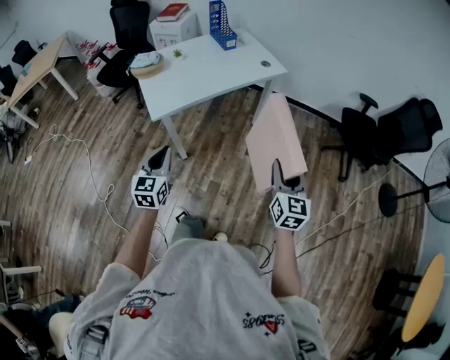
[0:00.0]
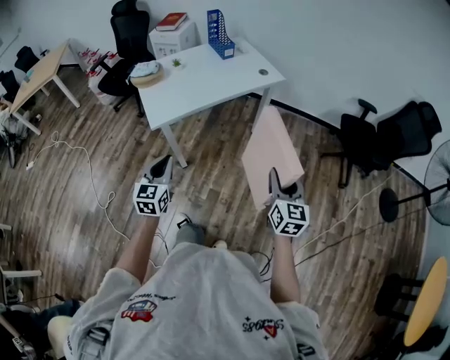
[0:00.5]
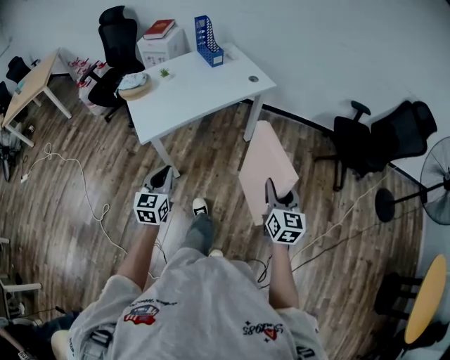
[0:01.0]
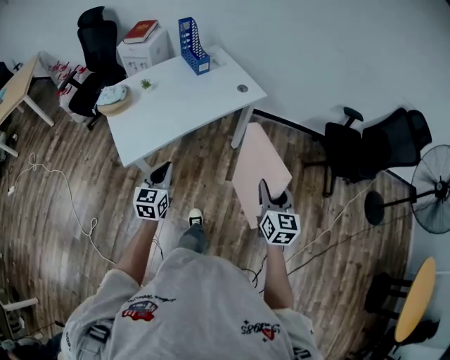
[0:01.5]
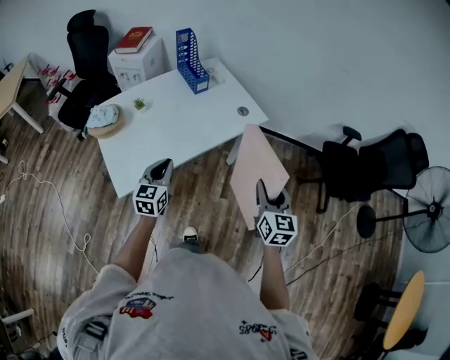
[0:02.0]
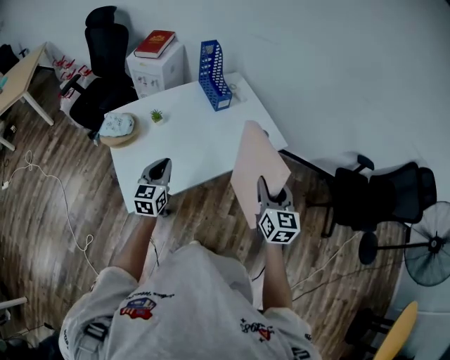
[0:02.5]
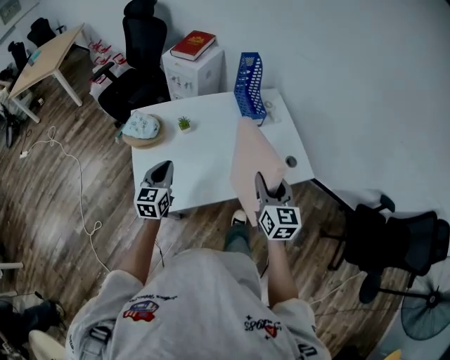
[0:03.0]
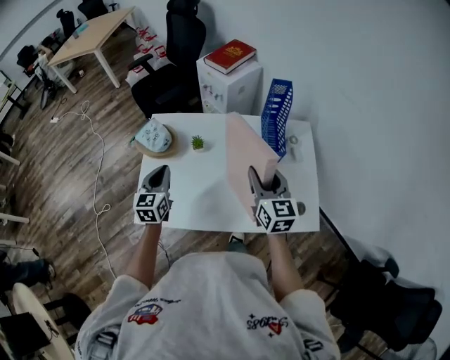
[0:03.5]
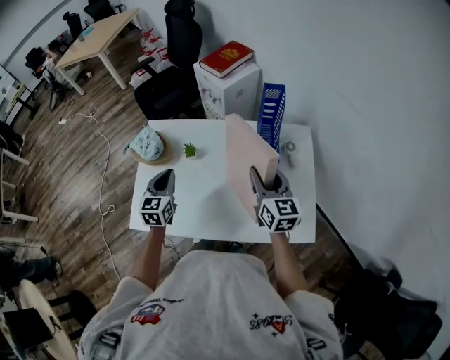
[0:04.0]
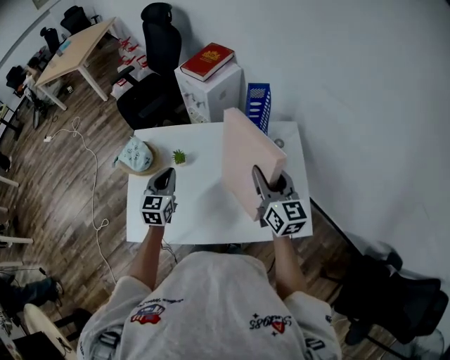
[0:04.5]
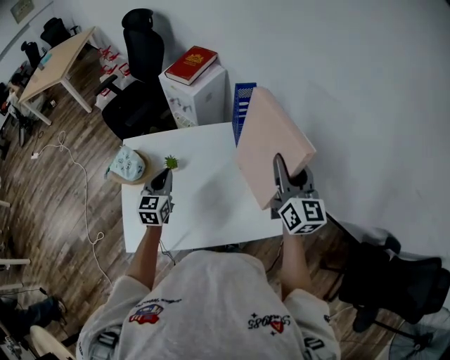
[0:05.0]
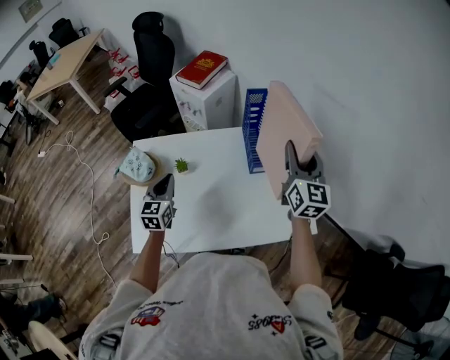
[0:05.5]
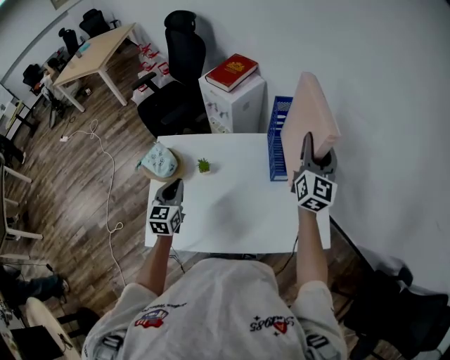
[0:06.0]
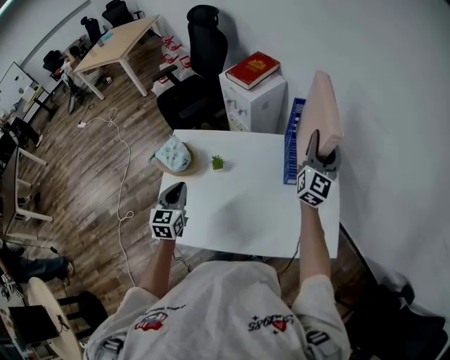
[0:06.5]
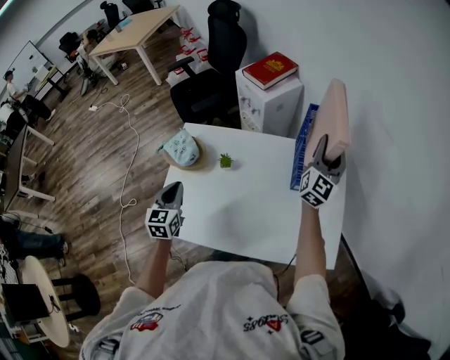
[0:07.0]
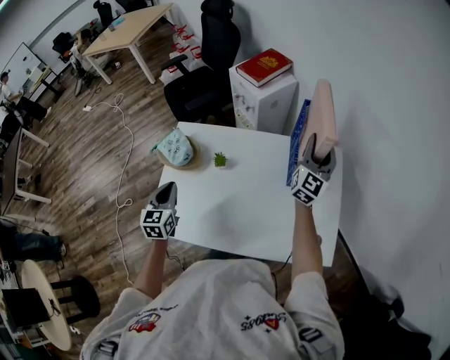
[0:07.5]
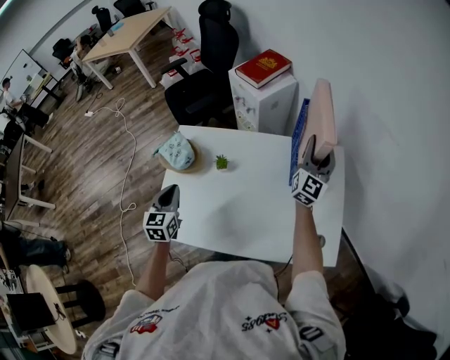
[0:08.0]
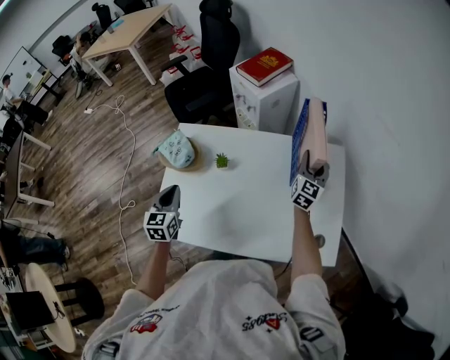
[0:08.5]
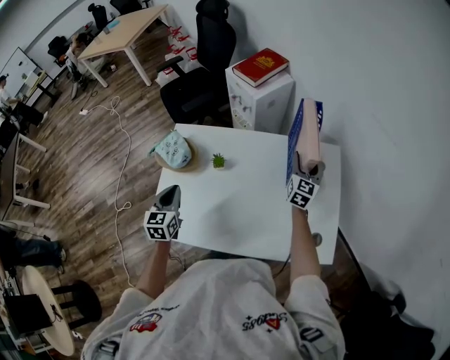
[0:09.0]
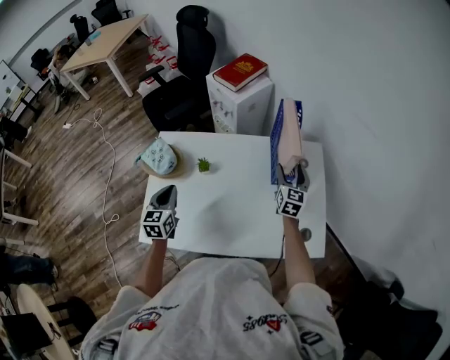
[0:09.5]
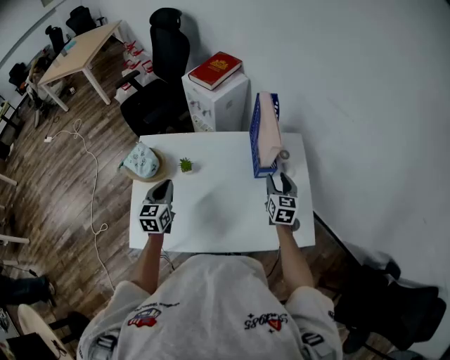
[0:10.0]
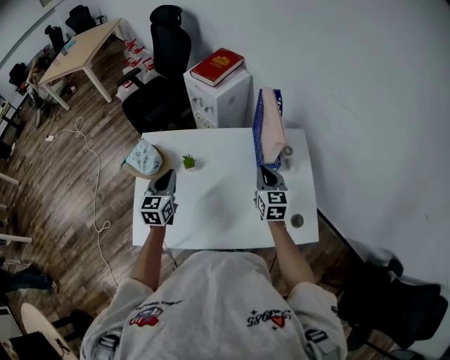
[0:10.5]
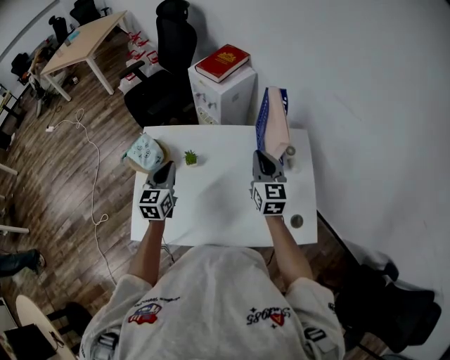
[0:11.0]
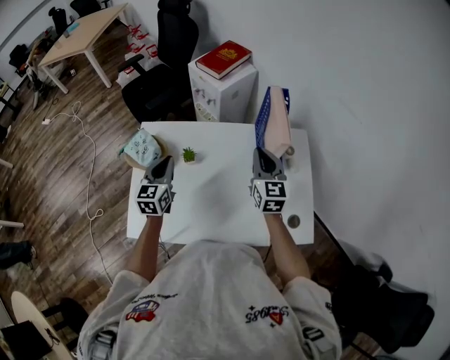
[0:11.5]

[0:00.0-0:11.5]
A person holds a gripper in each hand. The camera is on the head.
0:00.0 to 0:02.0: Both grippers travel together forward, some 35 cm.
0:02.0 to 0:04.0: The left gripper ends up about 30 cm from where it was, and turns by some 40 degrees. Meanwhile the right gripper moves approximately 60 cm, and changes its angle by some 50 degrees.
0:04.0 to 0:06.0: The right gripper moves upward, forward and to the right, about 20 cm, and turns by roughly 40 degrees.
0:06.0 to 0:07.5: The left gripper travels to the left by about 5 cm, while the right gripper travels downward and forward by approximately 10 cm.
0:07.5 to 0:09.5: The right gripper travels downward by some 15 cm, changes its angle by approximately 30 degrees, and opens.
0:09.5 to 0:11.5: The right gripper travels upward and to the left by roughly 15 cm, and closes up, while the left gripper travels forward by approximately 5 cm.

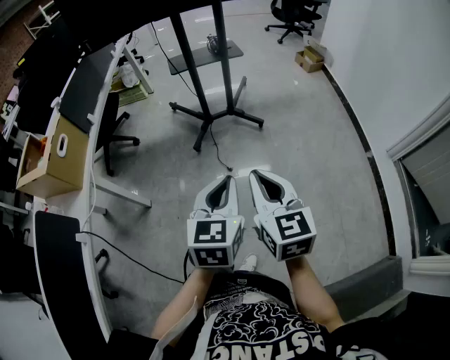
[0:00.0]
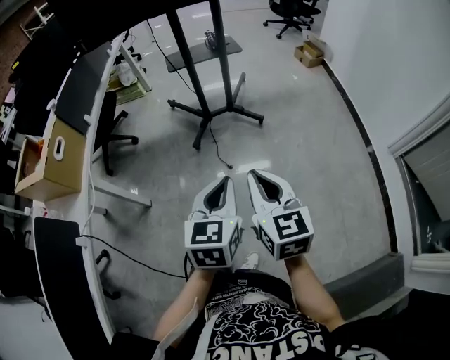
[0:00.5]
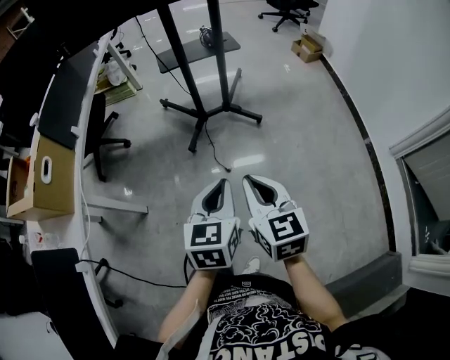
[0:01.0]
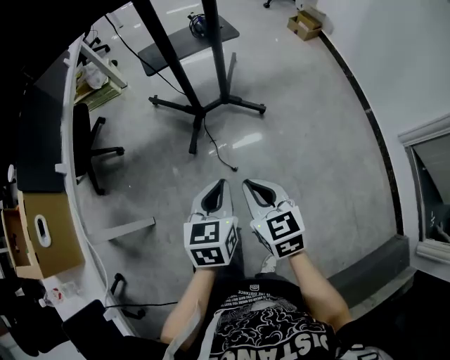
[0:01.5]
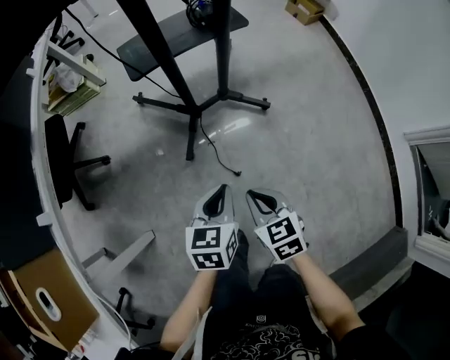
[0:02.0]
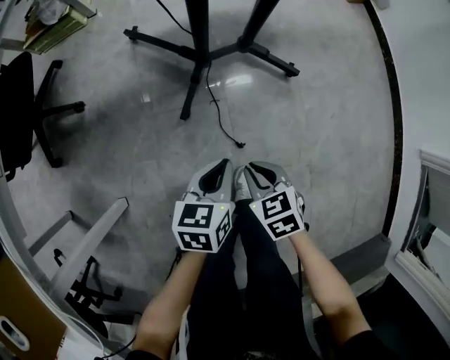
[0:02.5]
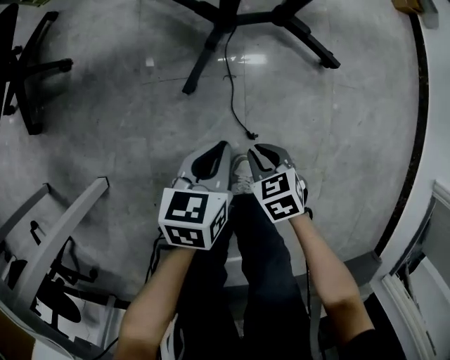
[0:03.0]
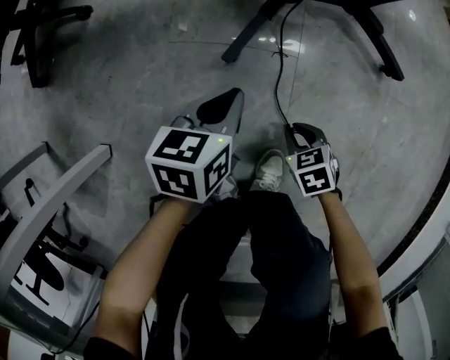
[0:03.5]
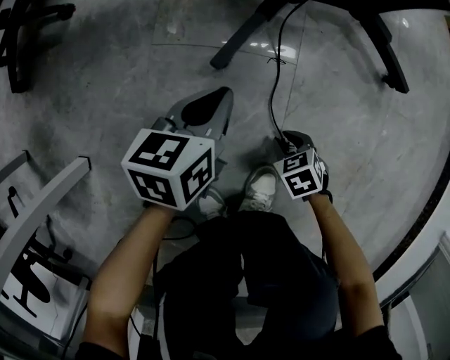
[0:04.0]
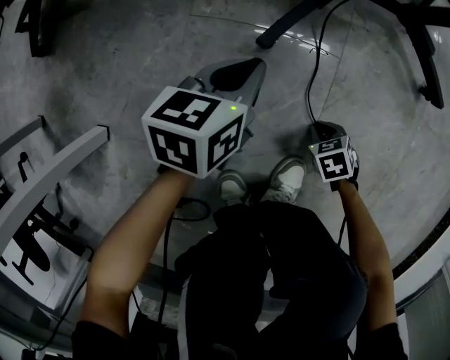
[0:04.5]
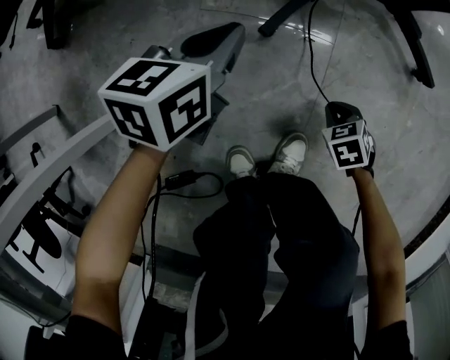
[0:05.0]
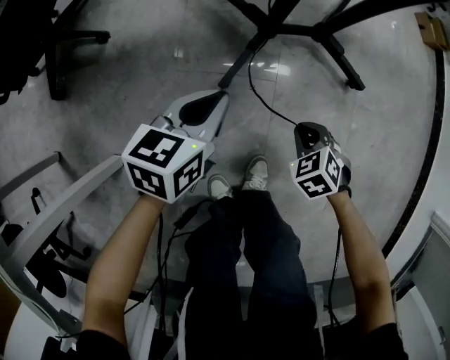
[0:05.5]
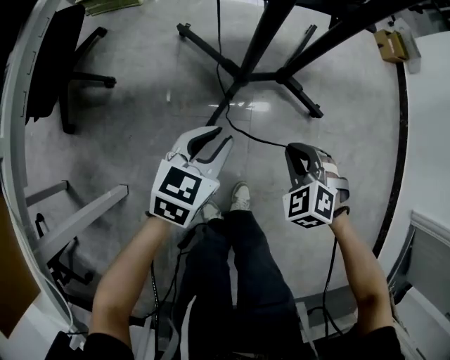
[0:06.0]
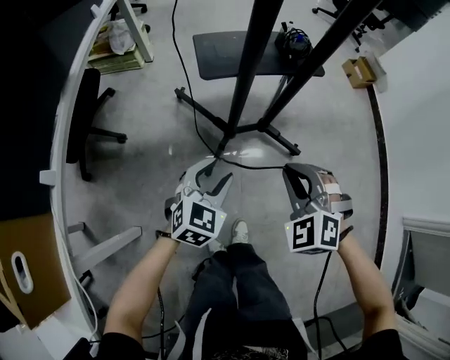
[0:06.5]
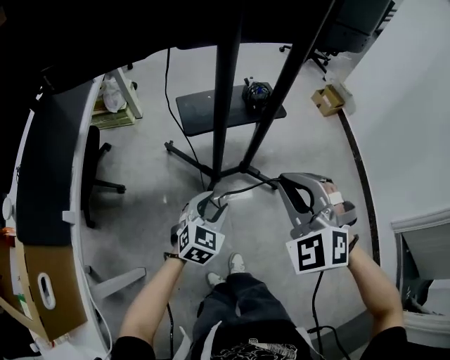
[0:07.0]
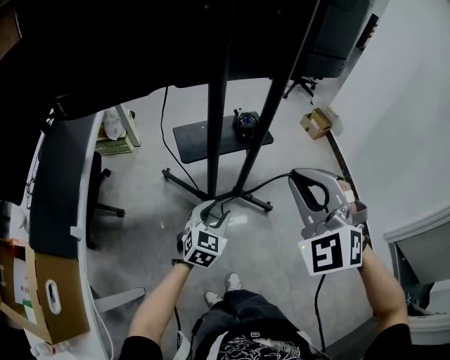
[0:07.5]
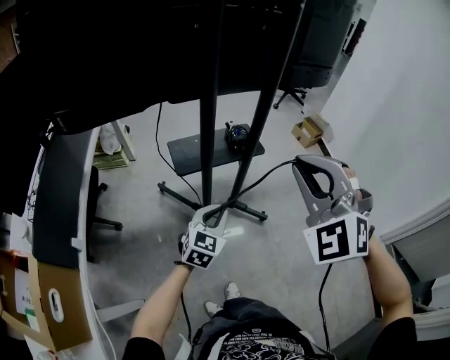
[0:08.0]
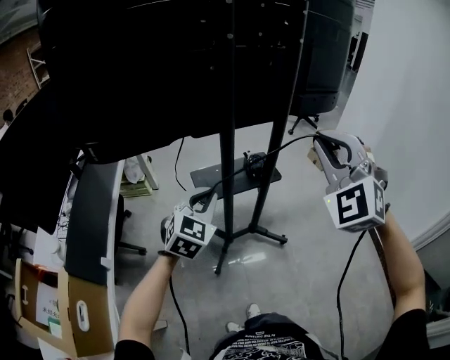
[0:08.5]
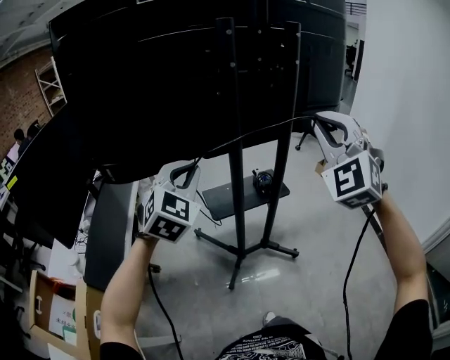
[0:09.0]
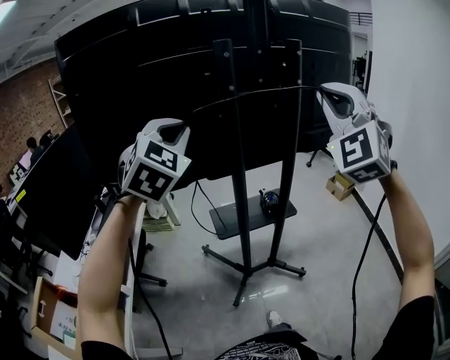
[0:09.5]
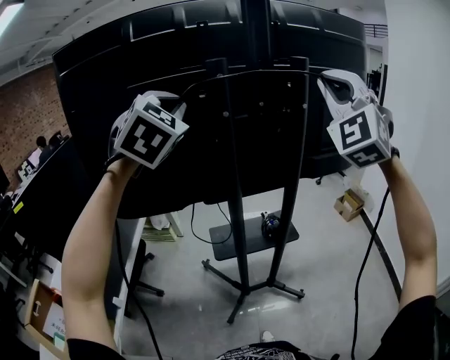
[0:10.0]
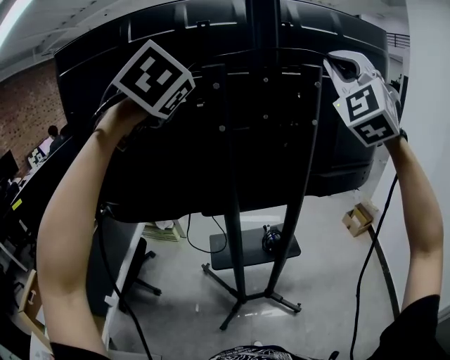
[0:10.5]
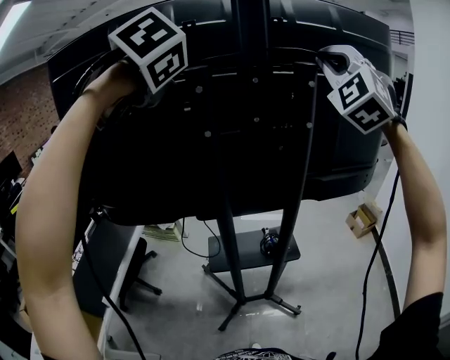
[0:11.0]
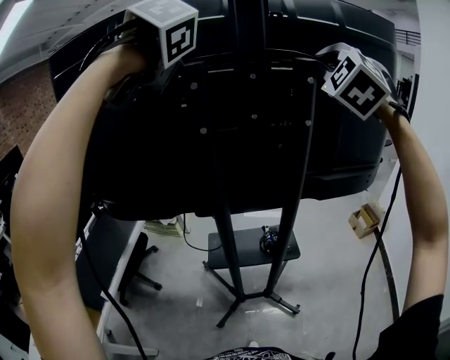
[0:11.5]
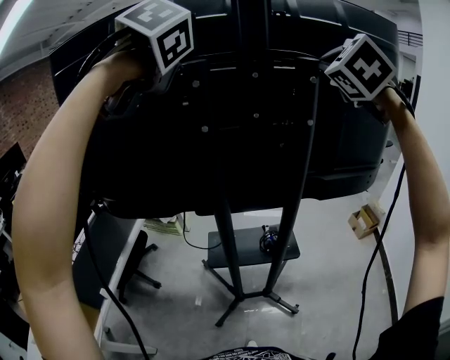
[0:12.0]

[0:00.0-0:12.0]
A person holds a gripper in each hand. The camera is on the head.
0:00.0 to 0:02.0: The two grippers go some 40 cm forward and downward. The right gripper turns by about 30 degrees. Meanwhile the left gripper changes its angle by approximately 20 degrees.
0:02.0 to 0:04.0: The grippers both shift downward by some 50 cm. The right gripper changes its angle by about 40 degrees, and opens its fingers.
0:04.0 to 0:06.0: Both grippers travel together upward, roughly 40 cm. The left gripper changes its angle by approximately 30 degrees, and opens its fingers; the right gripper changes its angle by roughly 40 degrees.
0:06.0 to 0:08.0: The right gripper moves upward, approximately 60 cm, and angles its fingers upward, by roughly 40 degrees. The left gripper shifts some 25 cm upward, rotates roughly 20 degrees, and opens and closes again.
0:08.0 to 0:10.0: The right gripper shifts approximately 40 cm upward and forward, and angles its fingers upward, by approximately 30 degrees; the left gripper is displaced upward by approximately 60 cm, and changes its angle by approximately 50 degrees.
0:10.0 to 0:12.0: The left gripper shifts about 5 cm forward, and points its fingers approximately 40 degrees further downward; the right gripper travels forward by some 15 cm, and rotates some 30 degrees.

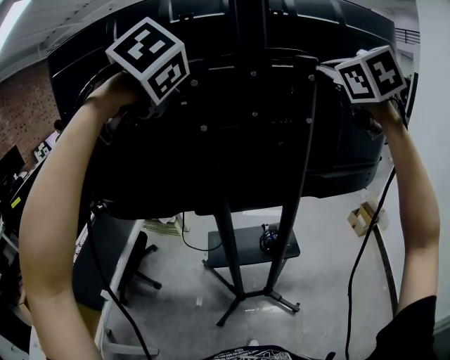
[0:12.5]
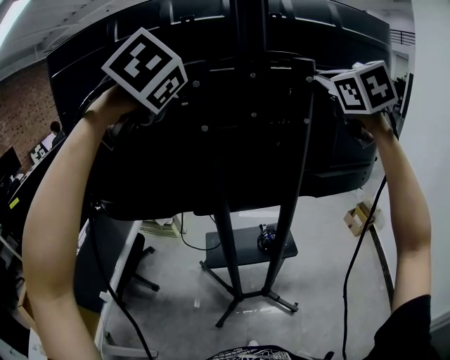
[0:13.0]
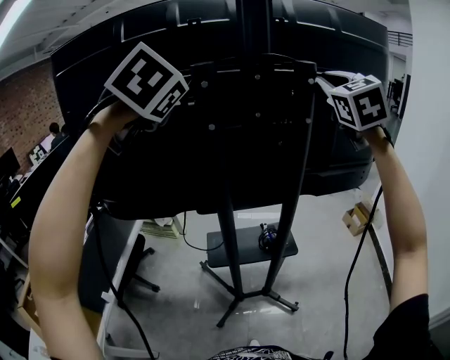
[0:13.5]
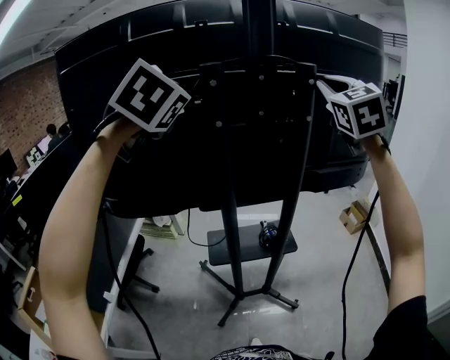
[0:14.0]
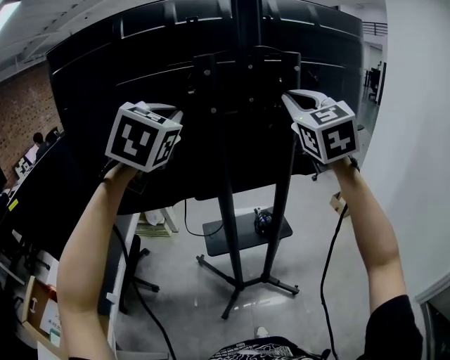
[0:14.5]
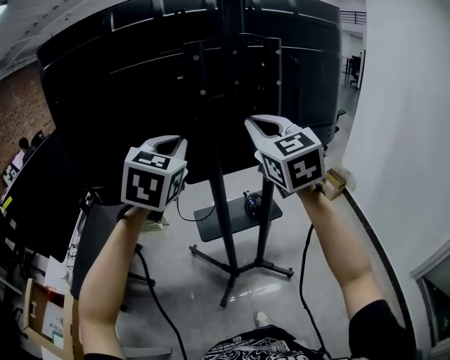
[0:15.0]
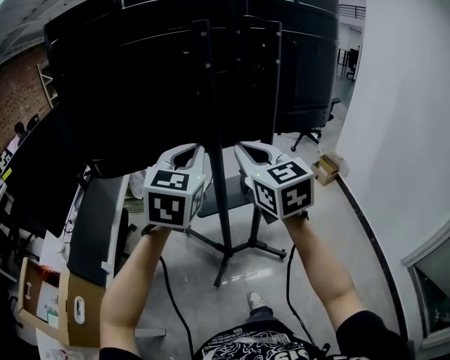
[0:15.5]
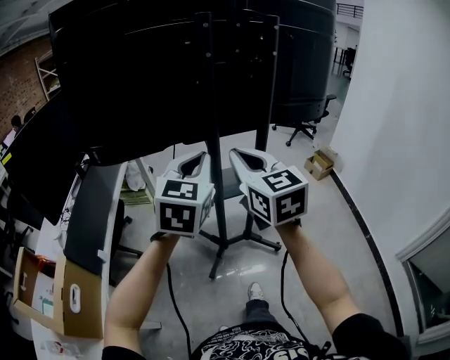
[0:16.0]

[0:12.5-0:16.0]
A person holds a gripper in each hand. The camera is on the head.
0:12.5 to 0:14.5: The left gripper heads backward, covering approximately 5 cm, and swivels some 30 degrees. Meanwhile the right gripper is displaced backward, to the left and downward by approximately 15 cm.
0:14.5 to 0:16.0: The left gripper goes approximately 25 cm downward and backward, and turns by about 20 degrees, while the right gripper goes some 30 cm backward, downward and to the left, and swivels some 30 degrees.
